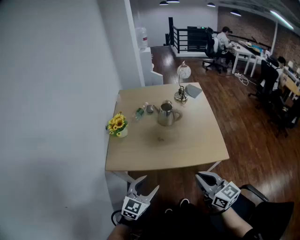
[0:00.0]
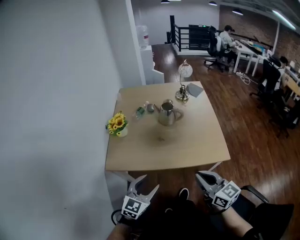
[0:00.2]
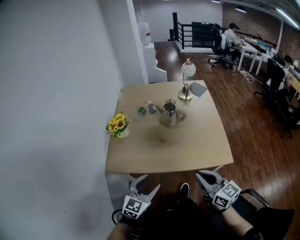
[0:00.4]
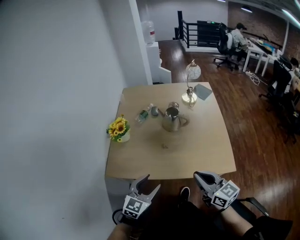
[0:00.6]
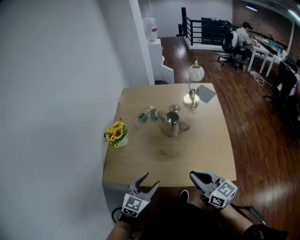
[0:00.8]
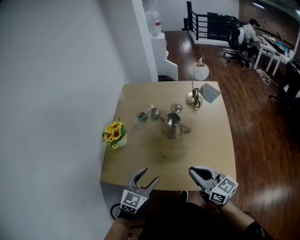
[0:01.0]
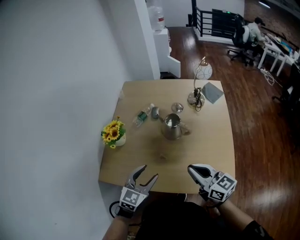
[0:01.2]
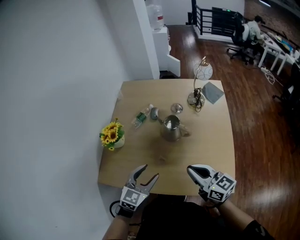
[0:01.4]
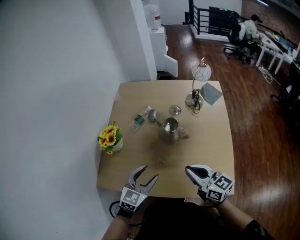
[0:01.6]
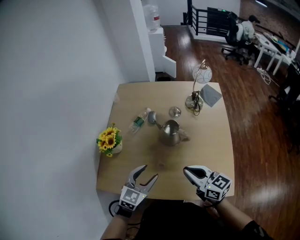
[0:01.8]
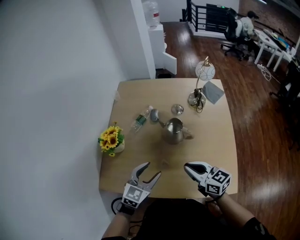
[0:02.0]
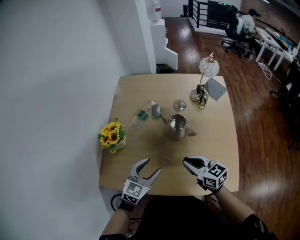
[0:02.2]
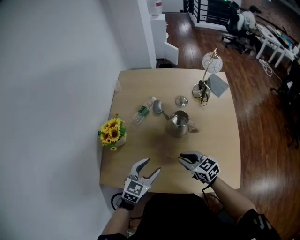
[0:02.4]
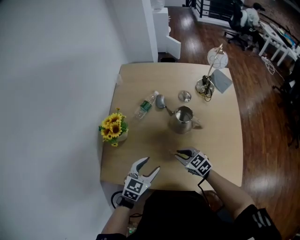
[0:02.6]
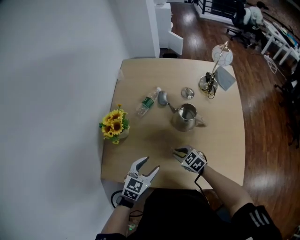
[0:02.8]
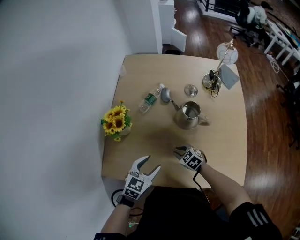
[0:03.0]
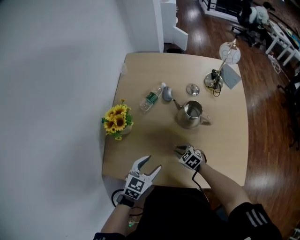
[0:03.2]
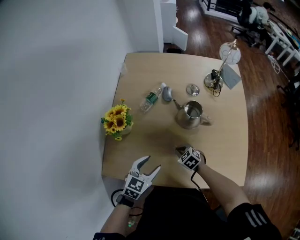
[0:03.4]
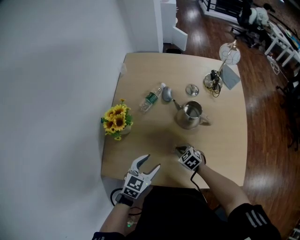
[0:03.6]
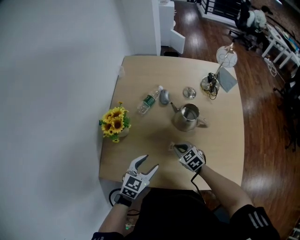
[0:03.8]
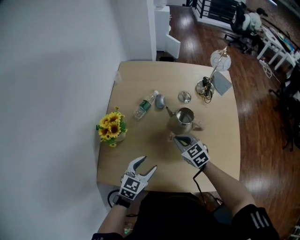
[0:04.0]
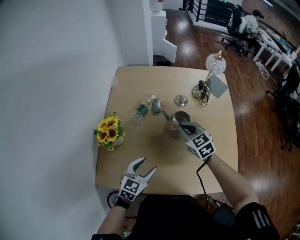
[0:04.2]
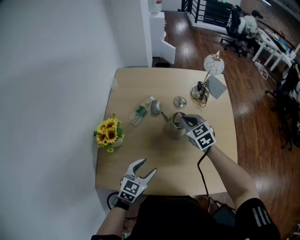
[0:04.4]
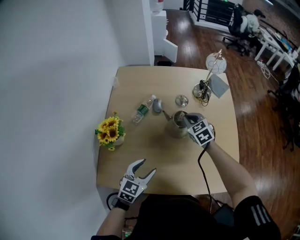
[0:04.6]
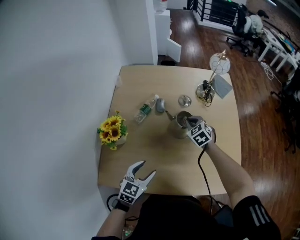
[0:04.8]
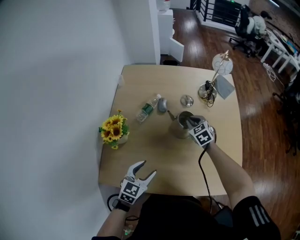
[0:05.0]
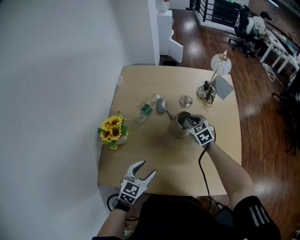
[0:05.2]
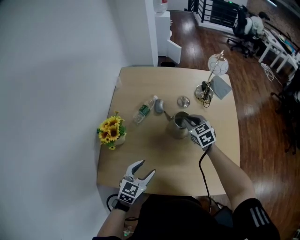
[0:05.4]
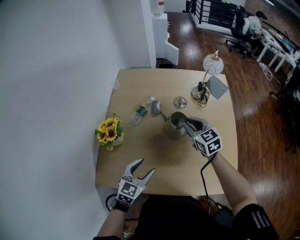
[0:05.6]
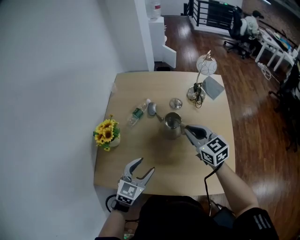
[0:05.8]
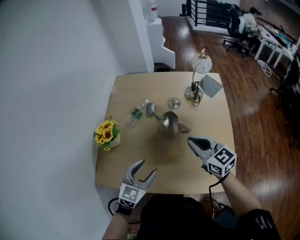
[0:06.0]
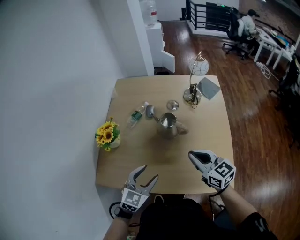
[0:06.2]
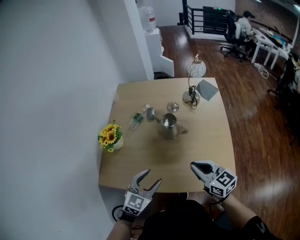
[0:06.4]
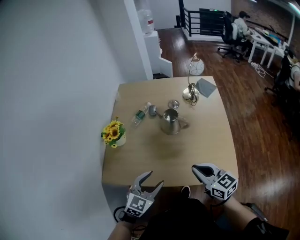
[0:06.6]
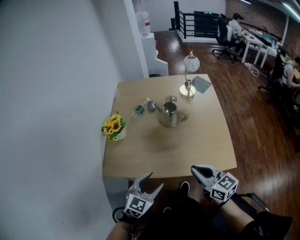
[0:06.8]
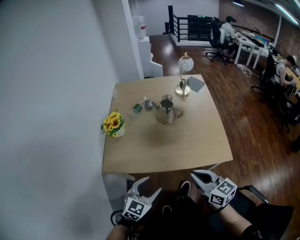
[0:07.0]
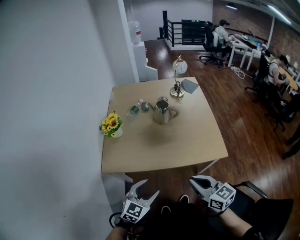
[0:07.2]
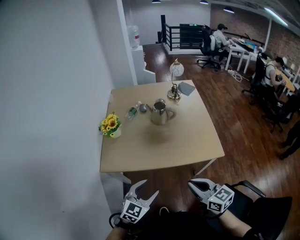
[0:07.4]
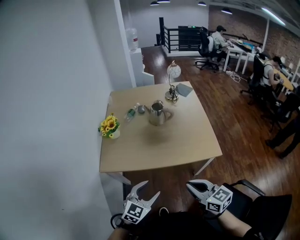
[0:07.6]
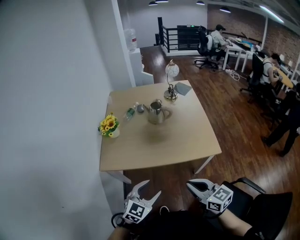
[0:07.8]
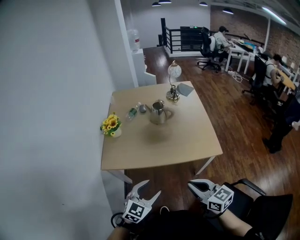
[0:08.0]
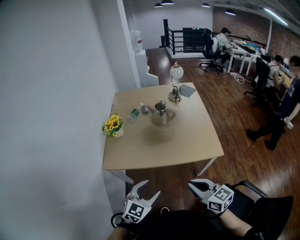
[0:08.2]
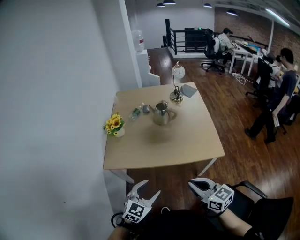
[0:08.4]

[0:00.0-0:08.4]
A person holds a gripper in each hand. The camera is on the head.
0.0 to 1.4 s: Both grippers travel together forward, roughly 30 cm.
1.4 to 2.8 s: The right gripper goes approximately 30 cm downward, to the left and forward, and tips its fingers downward by about 40 degrees; the left gripper is displaced downward, to the left and forward by some 15 cm.
2.8 to 4.2 s: The right gripper heads upward and forward, covering approximately 20 cm, and changes its angle by some 20 degrees.
4.2 to 5.6 s: The right gripper travels downward and back again, roughly 10 cm each way.
5.6 to 7.0 s: The left gripper goes approximately 30 cm backward. Meanwhile the right gripper is displaced backward by approximately 50 cm, and turns by approximately 20 degrees.
7.0 to 8.4 s: The two grippers go about 10 cm backward.

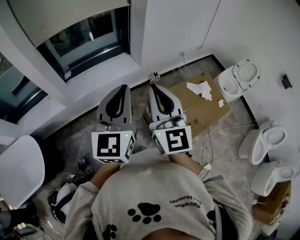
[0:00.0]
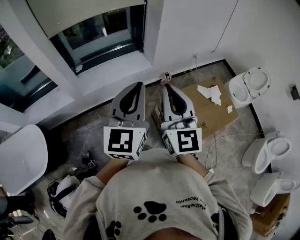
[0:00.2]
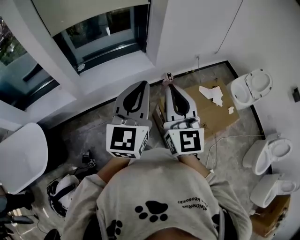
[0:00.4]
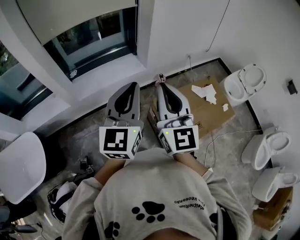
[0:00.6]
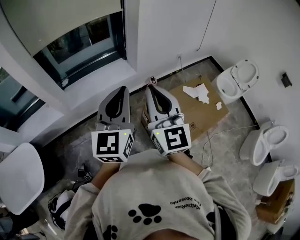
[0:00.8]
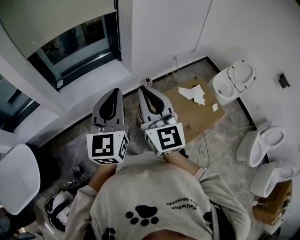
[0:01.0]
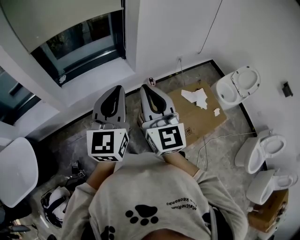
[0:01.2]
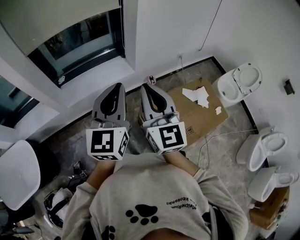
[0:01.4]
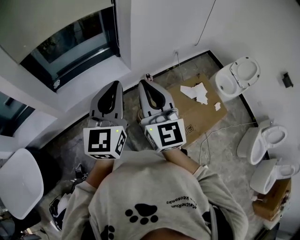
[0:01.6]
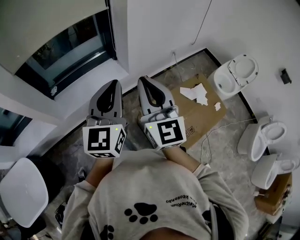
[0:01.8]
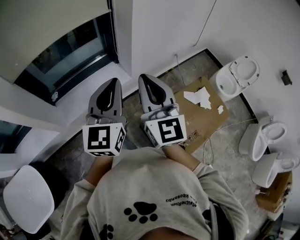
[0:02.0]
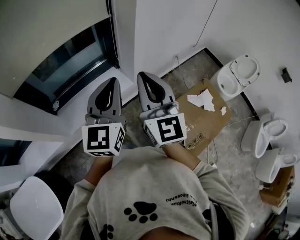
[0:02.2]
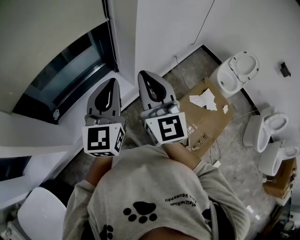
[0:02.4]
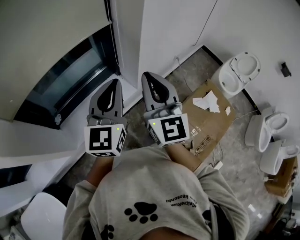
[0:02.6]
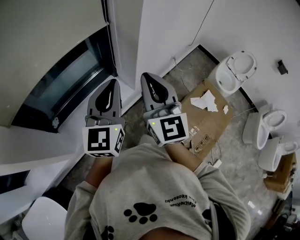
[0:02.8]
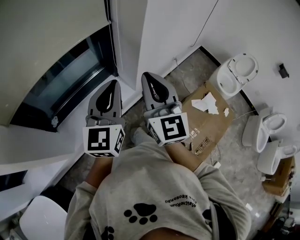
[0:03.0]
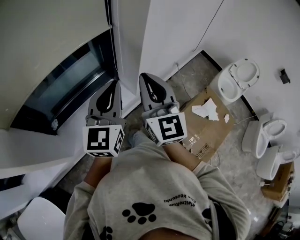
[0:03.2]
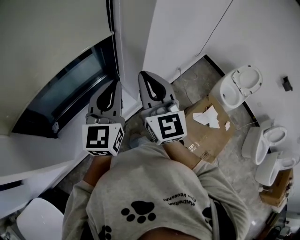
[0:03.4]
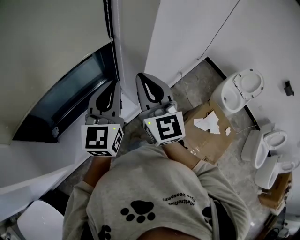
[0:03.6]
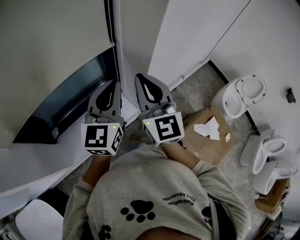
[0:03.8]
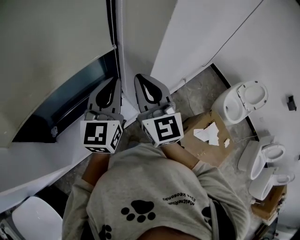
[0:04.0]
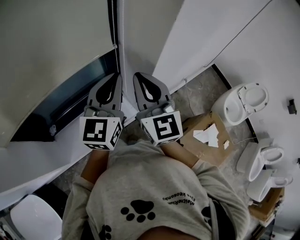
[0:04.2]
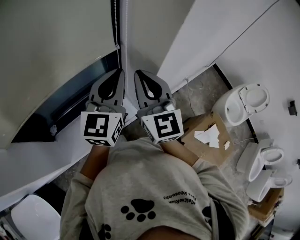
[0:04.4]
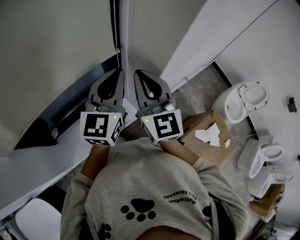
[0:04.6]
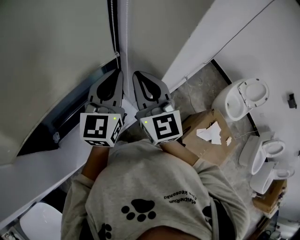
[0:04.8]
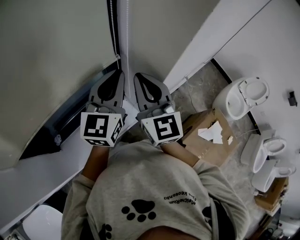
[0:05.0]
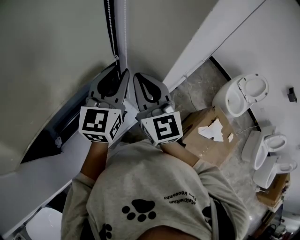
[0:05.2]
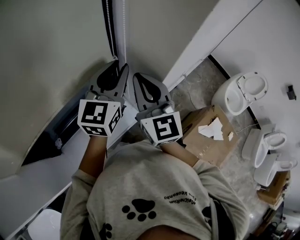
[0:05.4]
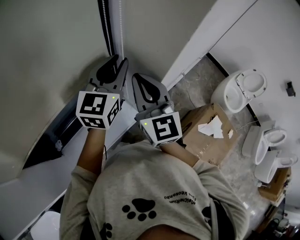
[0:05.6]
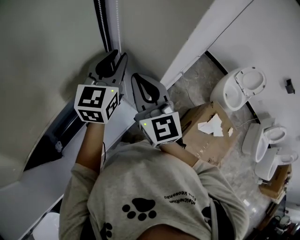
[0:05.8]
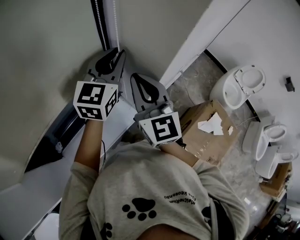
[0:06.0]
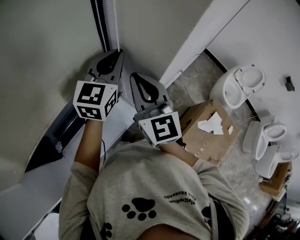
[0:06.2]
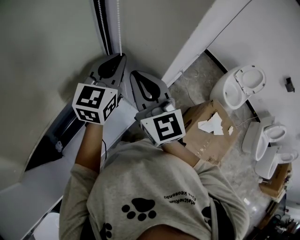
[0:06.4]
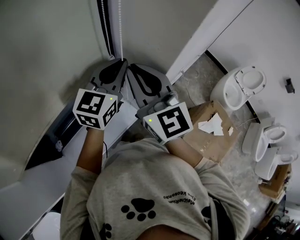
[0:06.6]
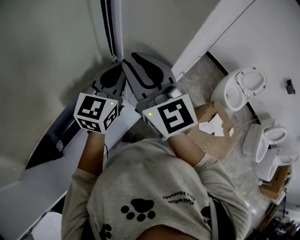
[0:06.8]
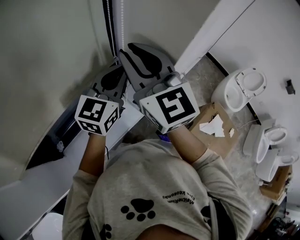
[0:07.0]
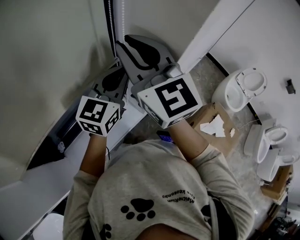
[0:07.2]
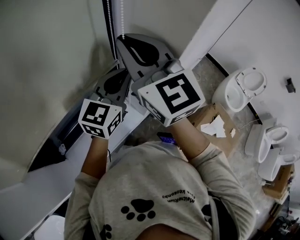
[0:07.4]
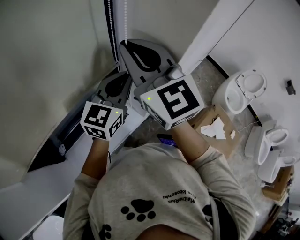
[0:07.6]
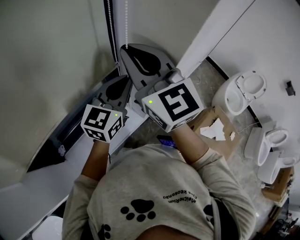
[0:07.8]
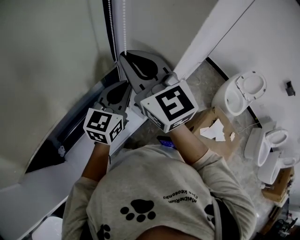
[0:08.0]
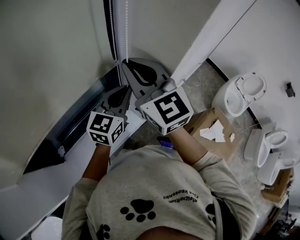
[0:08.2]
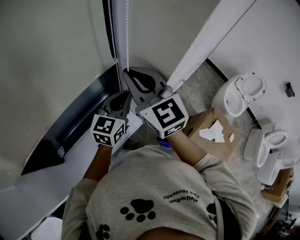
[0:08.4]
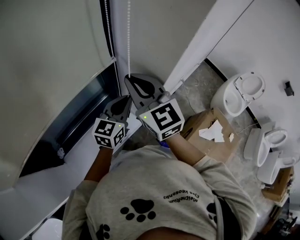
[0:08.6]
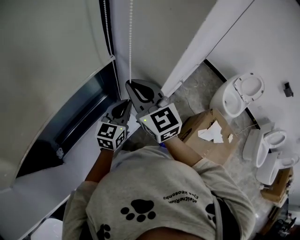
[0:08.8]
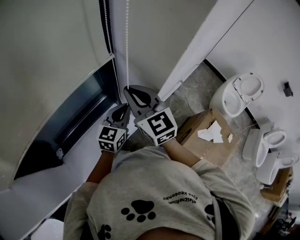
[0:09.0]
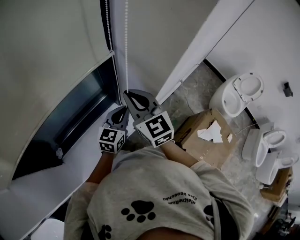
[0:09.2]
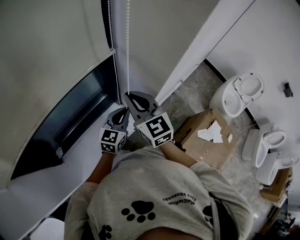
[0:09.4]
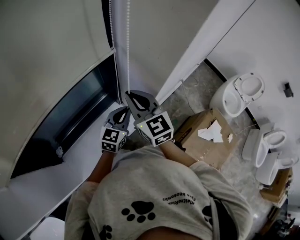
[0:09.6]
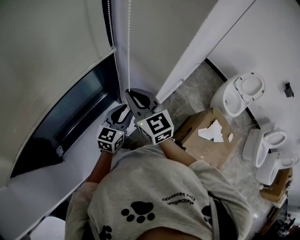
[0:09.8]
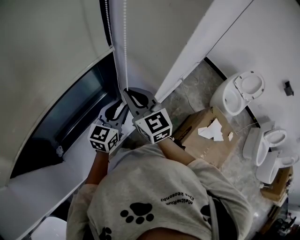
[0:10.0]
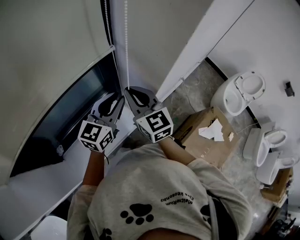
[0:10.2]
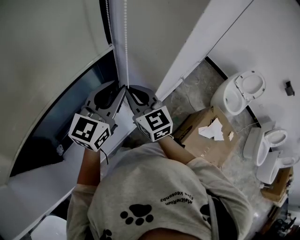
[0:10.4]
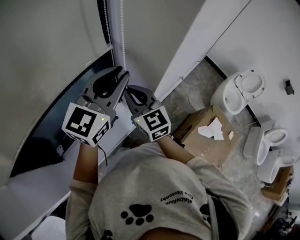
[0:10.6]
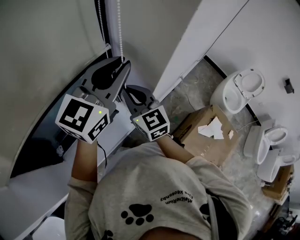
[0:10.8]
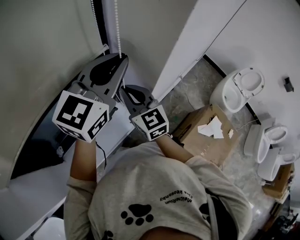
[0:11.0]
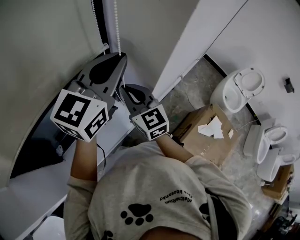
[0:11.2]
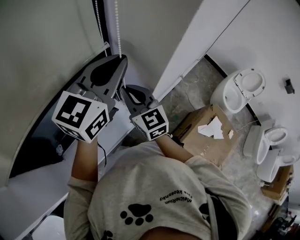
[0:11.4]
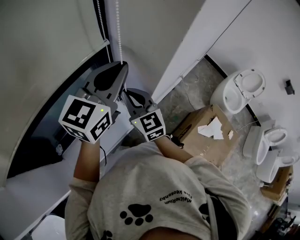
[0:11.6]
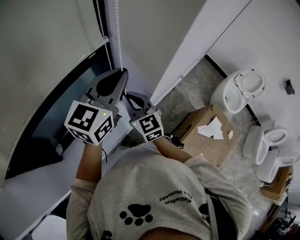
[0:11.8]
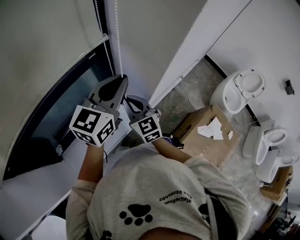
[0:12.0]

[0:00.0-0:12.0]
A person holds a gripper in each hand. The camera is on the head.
0.0 to 1.6 s: Both grippers move forward and to the right, about 15 cm.
1.6 to 3.0 s: The right gripper heads forward, covering roughly 25 cm. Meanwhile the left gripper moves forward and to the left, some 30 cm.
3.0 to 4.4 s: Both grippers travel together forward, roughly 20 cm.
4.4 to 6.0 s: The left gripper shifts approximately 10 cm forward.
6.0 to 7.6 s: The right gripper moves upward, approximately 10 cm; the left gripper heads backward, covering roughly 5 cm.
7.6 to 9.0 s: Both grippers travel together downward, approximately 15 cm.
9.0 to 10.4 s: The left gripper heads upward, covering roughly 15 cm, and opens its fingers.
10.4 to 12.0 s: The right gripper moves downward, about 10 cm. The left gripper goes upward and returns, roughly 10 cm each way, and closes its fingers.

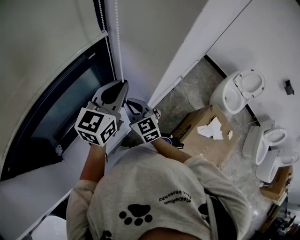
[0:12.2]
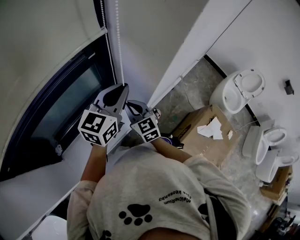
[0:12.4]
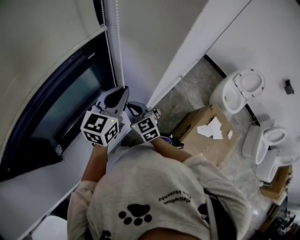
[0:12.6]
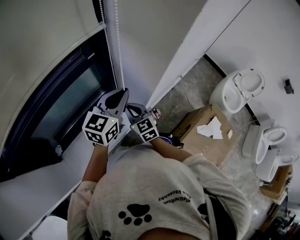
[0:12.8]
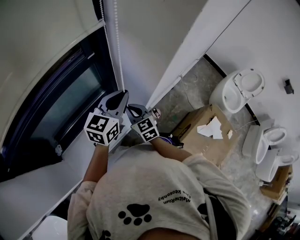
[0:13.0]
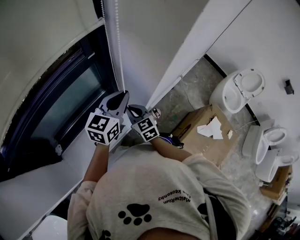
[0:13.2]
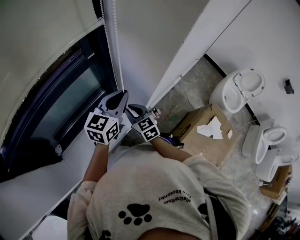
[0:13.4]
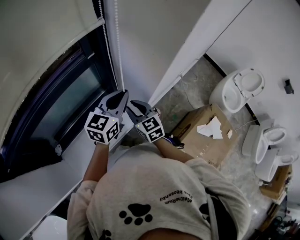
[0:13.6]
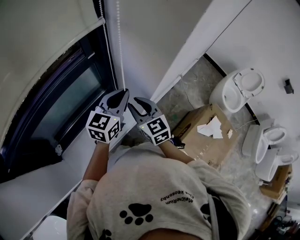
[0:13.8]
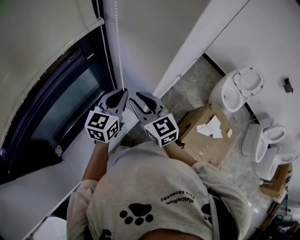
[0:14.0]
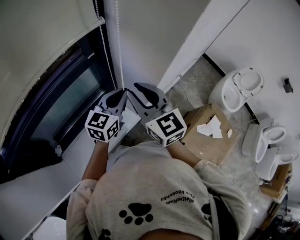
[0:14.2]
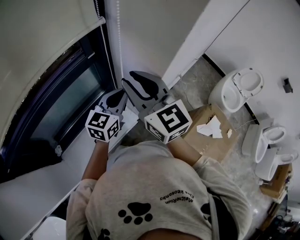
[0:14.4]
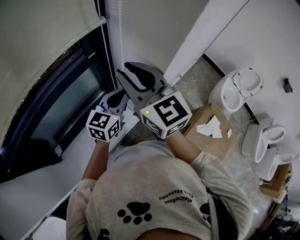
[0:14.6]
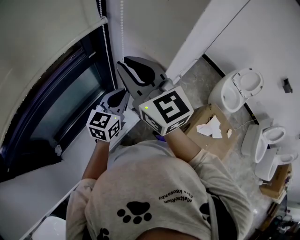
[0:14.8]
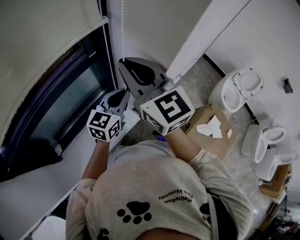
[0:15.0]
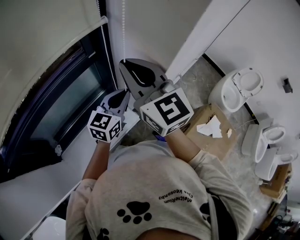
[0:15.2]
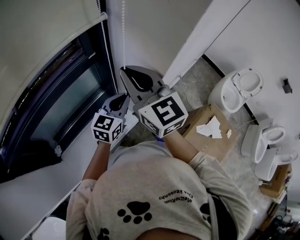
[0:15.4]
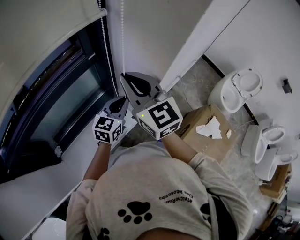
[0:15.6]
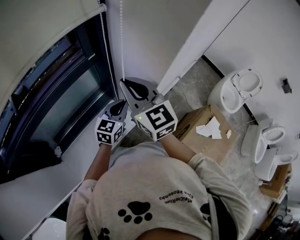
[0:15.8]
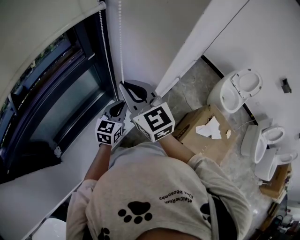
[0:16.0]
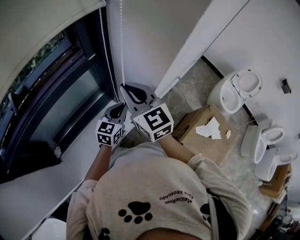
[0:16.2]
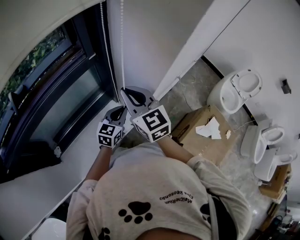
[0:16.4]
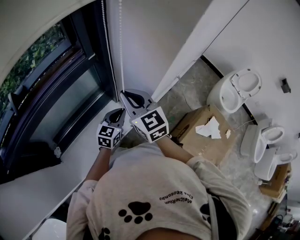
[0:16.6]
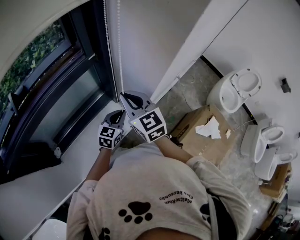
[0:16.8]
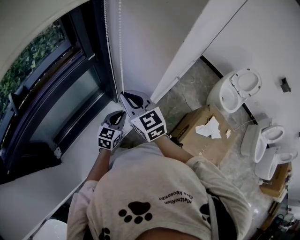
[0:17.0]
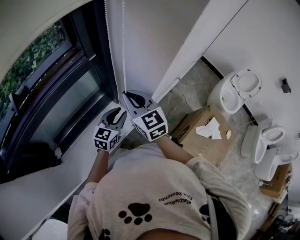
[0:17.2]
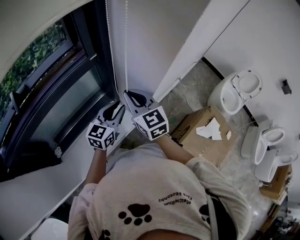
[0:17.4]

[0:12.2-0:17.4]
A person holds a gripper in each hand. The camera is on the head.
12.2 to 14.0 s: The right gripper moves upward, roughly 10 cm, and opens its fingers. Meanwhile the left gripper is displaced downward by approximately 10 cm.
14.0 to 15.6 s: The left gripper shifts some 5 cm downward. The right gripper goes about 10 cm upward, and closes up.
15.6 to 17.4 s: The left gripper travels downward and back again, approximately 10 cm each way, and opens its fingers. The right gripper moves downward, about 10 cm.
